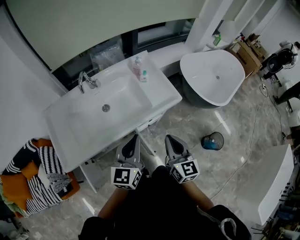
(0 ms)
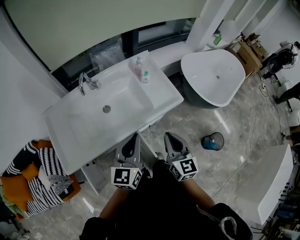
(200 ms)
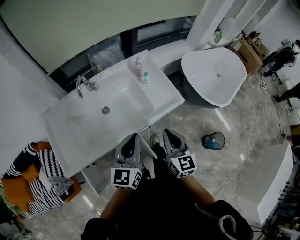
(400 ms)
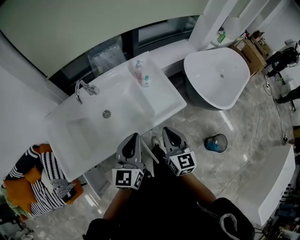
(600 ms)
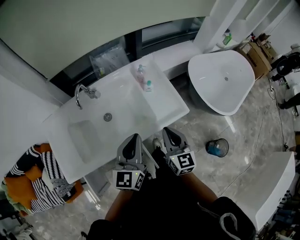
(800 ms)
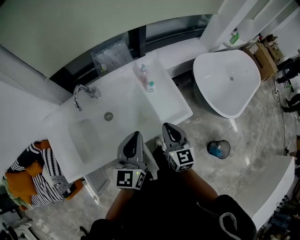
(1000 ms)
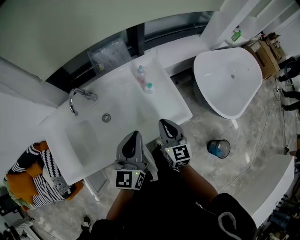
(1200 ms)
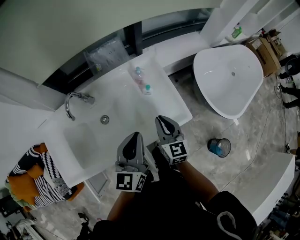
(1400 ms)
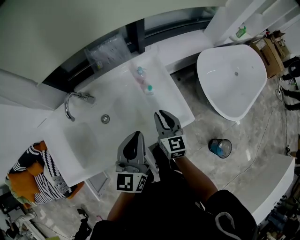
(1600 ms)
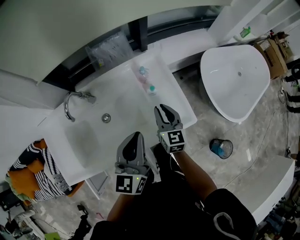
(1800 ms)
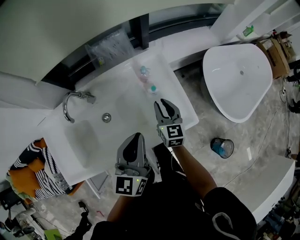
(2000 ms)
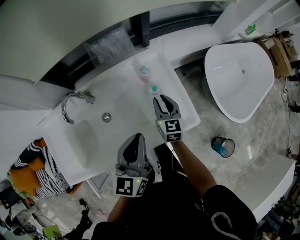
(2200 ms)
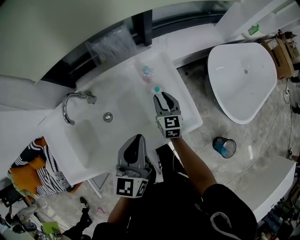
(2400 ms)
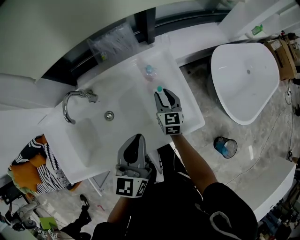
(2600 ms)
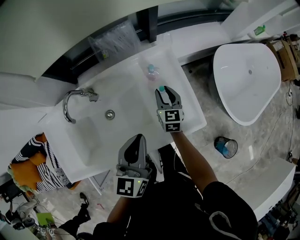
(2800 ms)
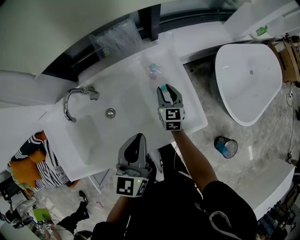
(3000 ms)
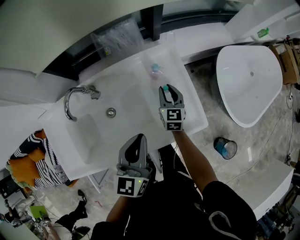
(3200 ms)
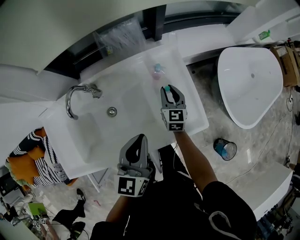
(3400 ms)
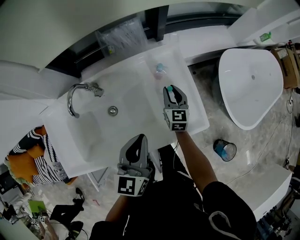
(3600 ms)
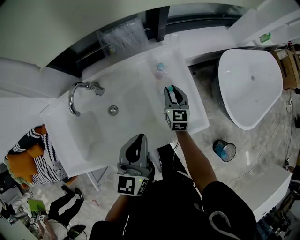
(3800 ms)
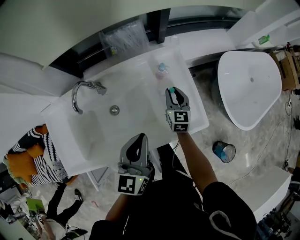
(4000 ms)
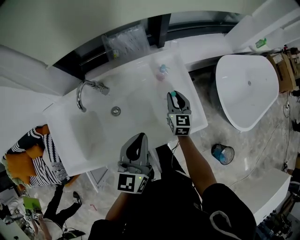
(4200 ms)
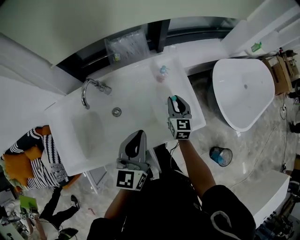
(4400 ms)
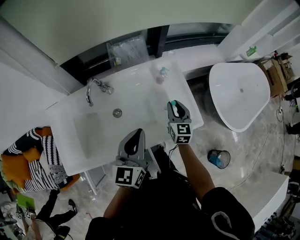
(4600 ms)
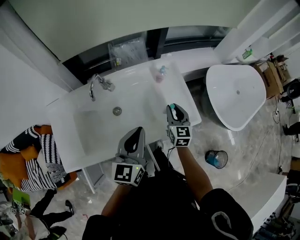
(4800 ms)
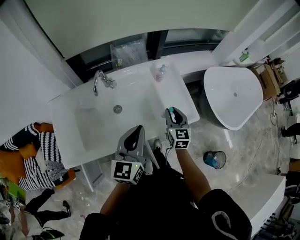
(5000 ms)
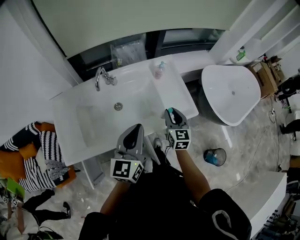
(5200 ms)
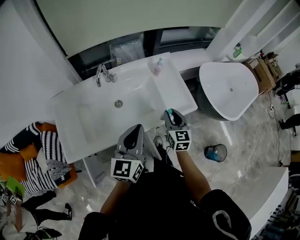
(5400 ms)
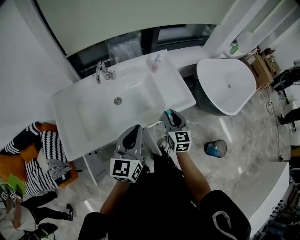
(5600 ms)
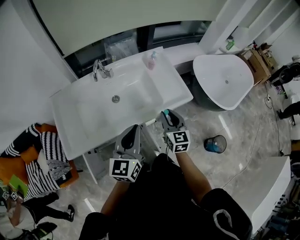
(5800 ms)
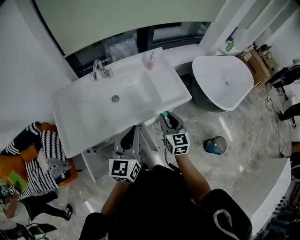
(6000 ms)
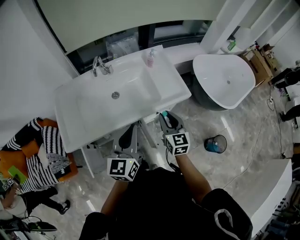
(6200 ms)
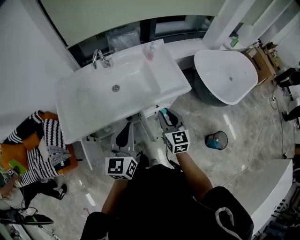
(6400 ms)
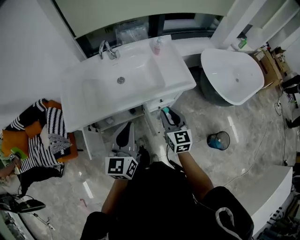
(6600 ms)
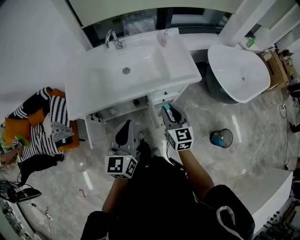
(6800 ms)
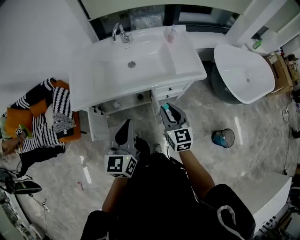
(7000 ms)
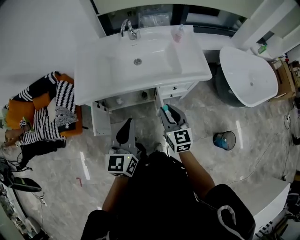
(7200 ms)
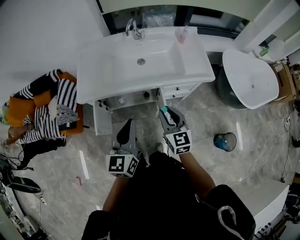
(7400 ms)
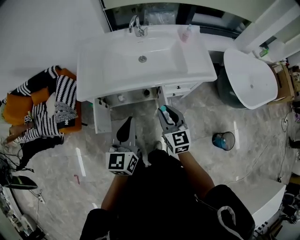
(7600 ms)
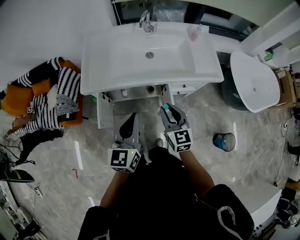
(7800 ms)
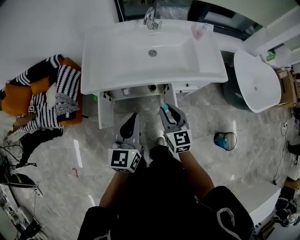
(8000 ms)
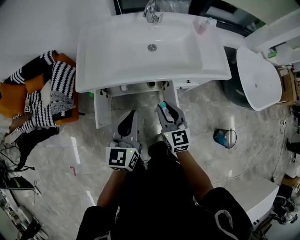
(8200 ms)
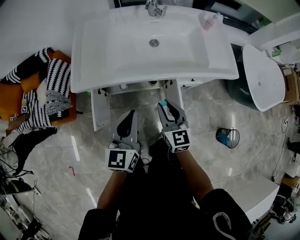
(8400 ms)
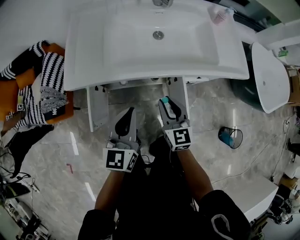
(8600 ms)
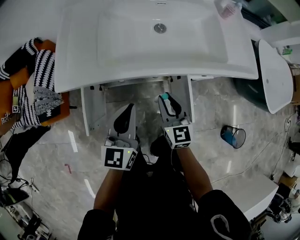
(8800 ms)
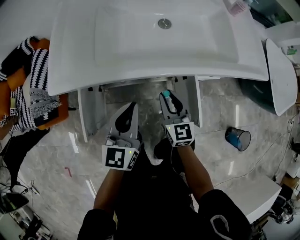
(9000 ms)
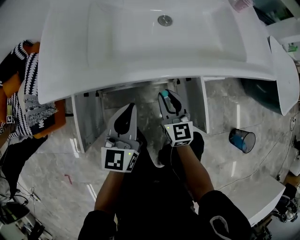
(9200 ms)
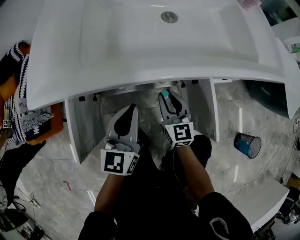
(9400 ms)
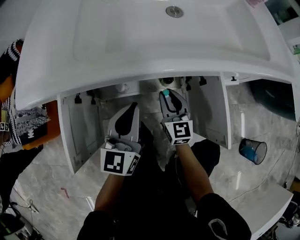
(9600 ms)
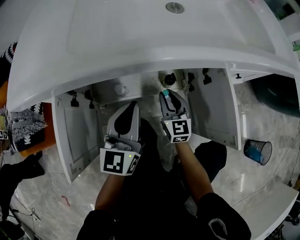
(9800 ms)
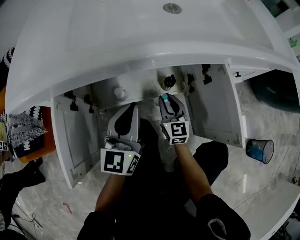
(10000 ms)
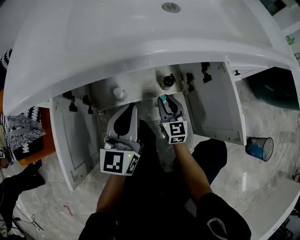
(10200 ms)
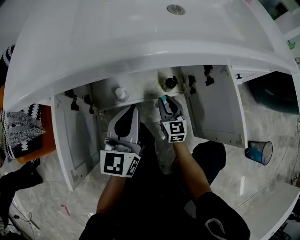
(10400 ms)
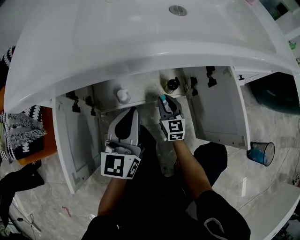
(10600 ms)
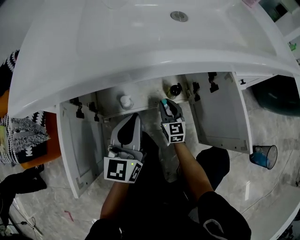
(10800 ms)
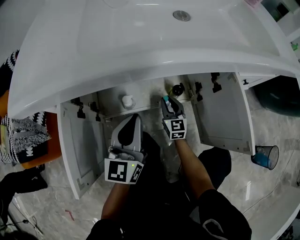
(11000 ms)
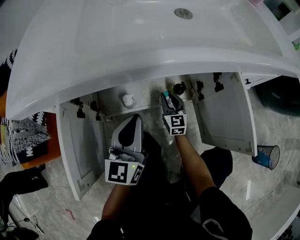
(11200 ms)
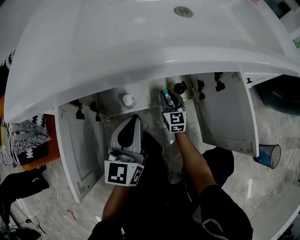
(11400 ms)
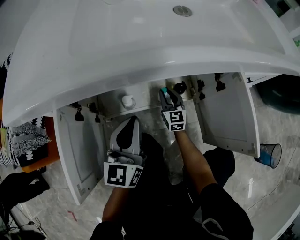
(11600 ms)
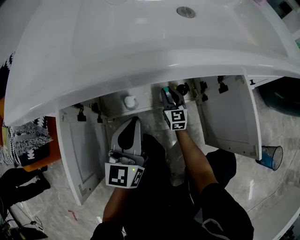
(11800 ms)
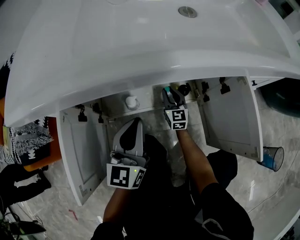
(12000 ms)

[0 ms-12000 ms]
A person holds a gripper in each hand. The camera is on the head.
0 ms to 1600 ms: Both grippers move forward, approximately 25 cm.
1600 ms to 3000 ms: The left gripper moves approximately 5 cm; the right gripper shifts roughly 20 cm forward and downward.
3000 ms to 4400 ms: The left gripper changes place by some 5 cm. Meanwhile the right gripper is displaced backward and upward by about 10 cm.
4400 ms to 6000 ms: Both grippers travel together backward, about 25 cm.
6000 ms to 7600 ms: Both grippers move backward and to the left, some 20 cm. The left gripper rotates some 20 degrees, while the right gripper rotates some 20 degrees.
7600 ms to 9000 ms: Both grippers travel together downward and forward, some 30 cm.
9000 ms to 10400 ms: The grippers both shift downward by roughly 30 cm.
10400 ms to 12000 ms: The right gripper travels forward and downward by approximately 10 cm.

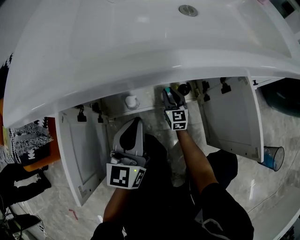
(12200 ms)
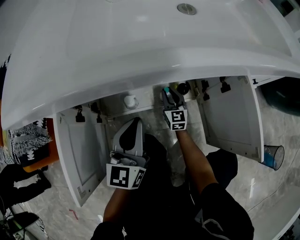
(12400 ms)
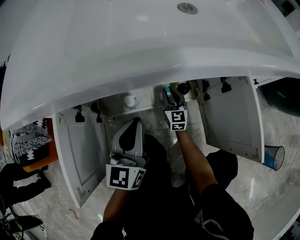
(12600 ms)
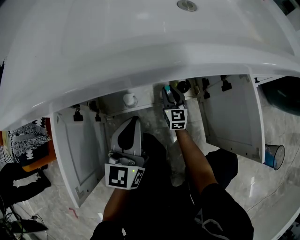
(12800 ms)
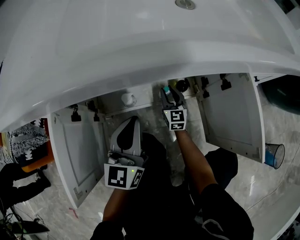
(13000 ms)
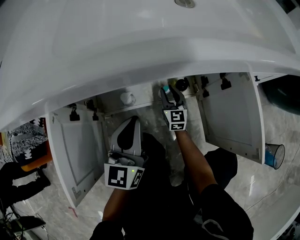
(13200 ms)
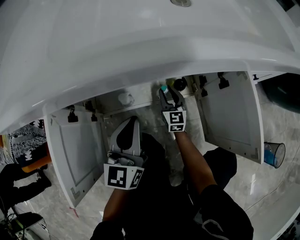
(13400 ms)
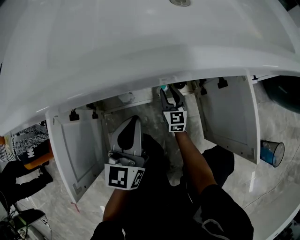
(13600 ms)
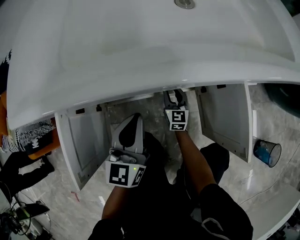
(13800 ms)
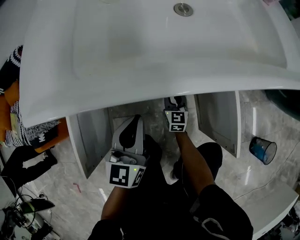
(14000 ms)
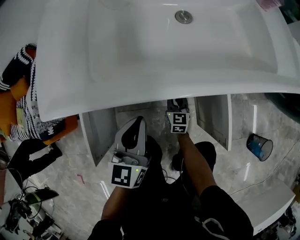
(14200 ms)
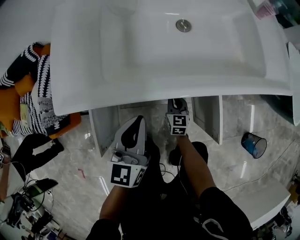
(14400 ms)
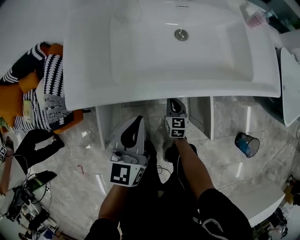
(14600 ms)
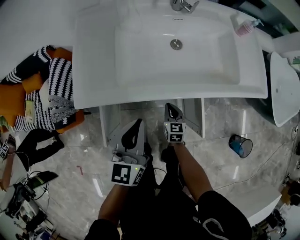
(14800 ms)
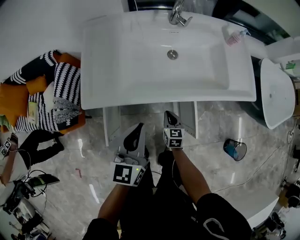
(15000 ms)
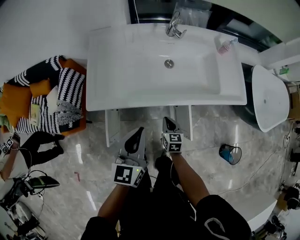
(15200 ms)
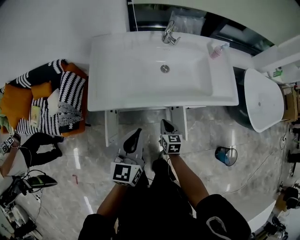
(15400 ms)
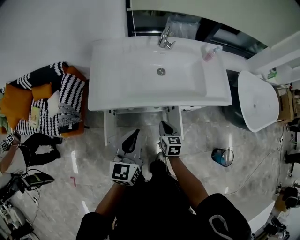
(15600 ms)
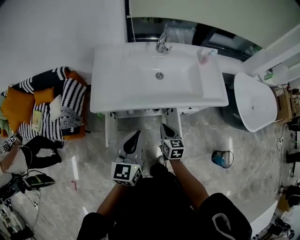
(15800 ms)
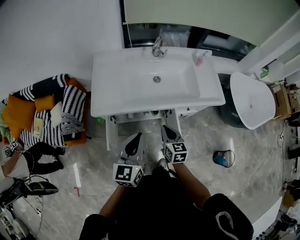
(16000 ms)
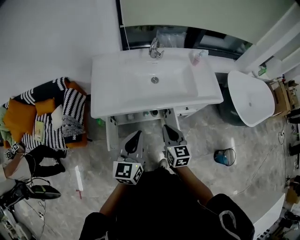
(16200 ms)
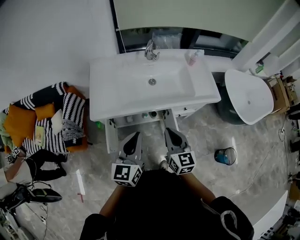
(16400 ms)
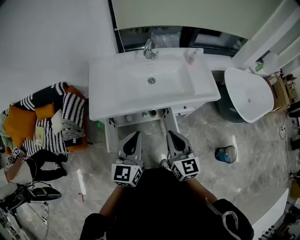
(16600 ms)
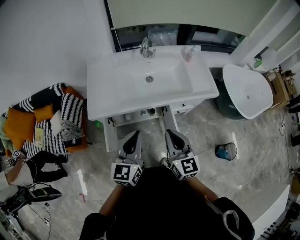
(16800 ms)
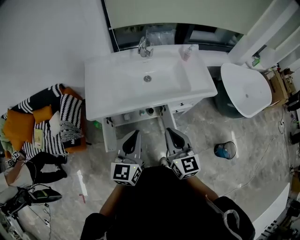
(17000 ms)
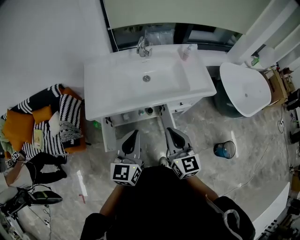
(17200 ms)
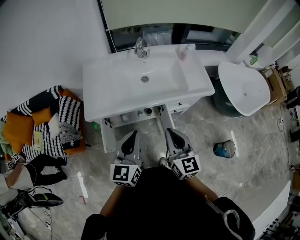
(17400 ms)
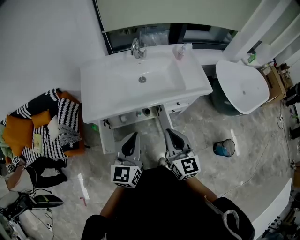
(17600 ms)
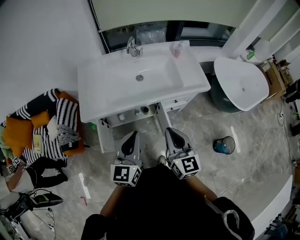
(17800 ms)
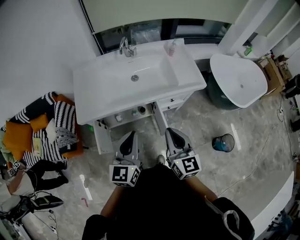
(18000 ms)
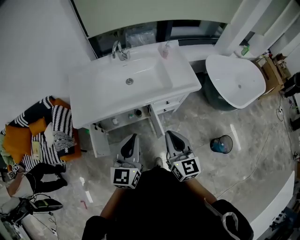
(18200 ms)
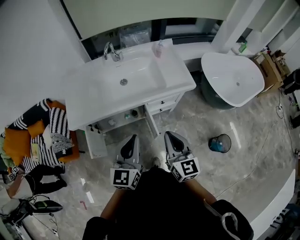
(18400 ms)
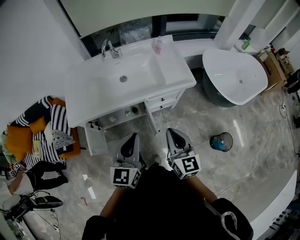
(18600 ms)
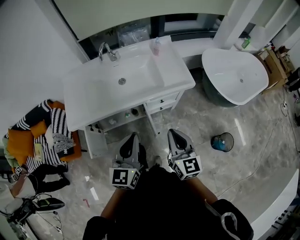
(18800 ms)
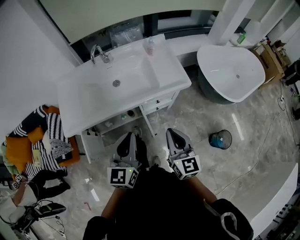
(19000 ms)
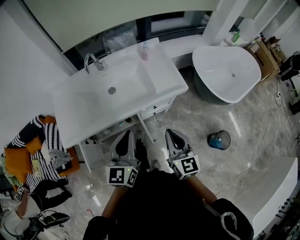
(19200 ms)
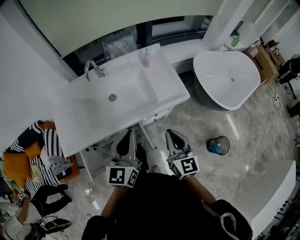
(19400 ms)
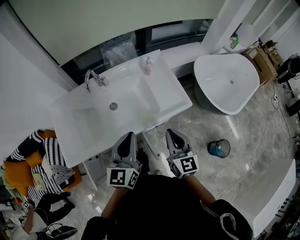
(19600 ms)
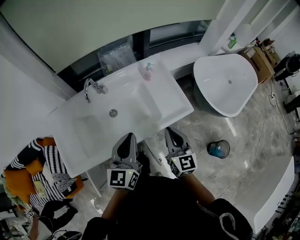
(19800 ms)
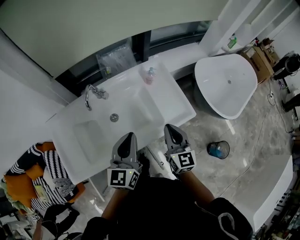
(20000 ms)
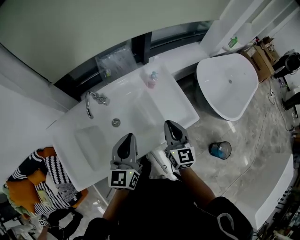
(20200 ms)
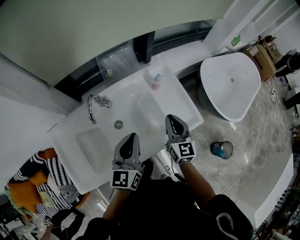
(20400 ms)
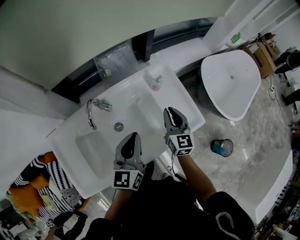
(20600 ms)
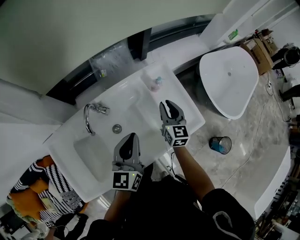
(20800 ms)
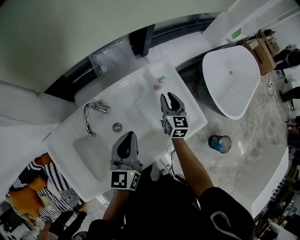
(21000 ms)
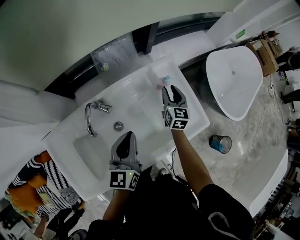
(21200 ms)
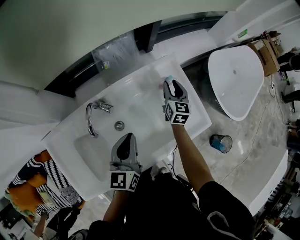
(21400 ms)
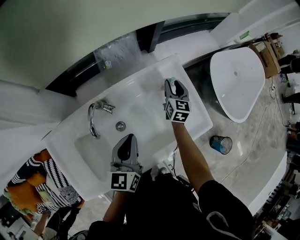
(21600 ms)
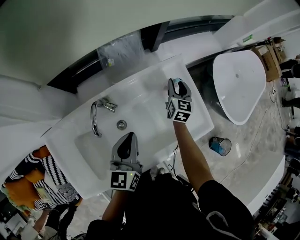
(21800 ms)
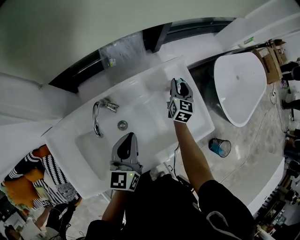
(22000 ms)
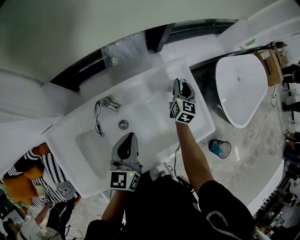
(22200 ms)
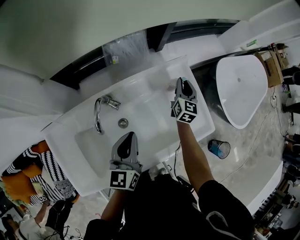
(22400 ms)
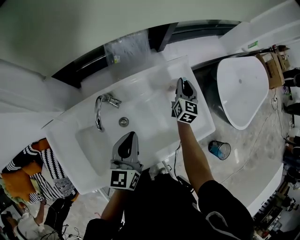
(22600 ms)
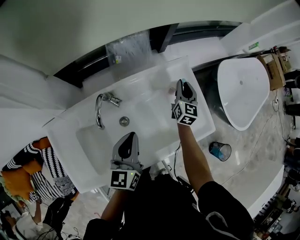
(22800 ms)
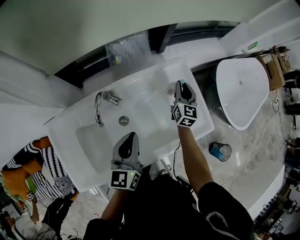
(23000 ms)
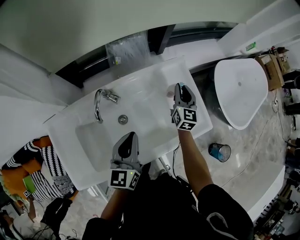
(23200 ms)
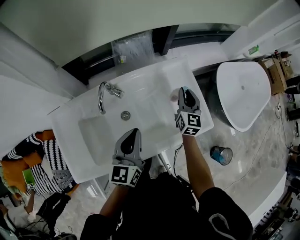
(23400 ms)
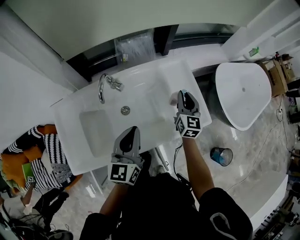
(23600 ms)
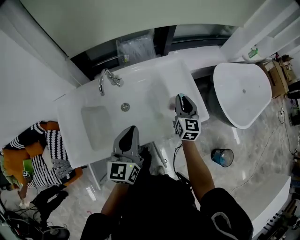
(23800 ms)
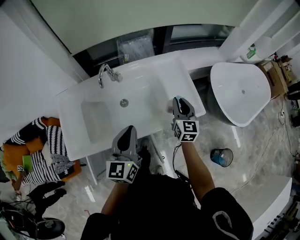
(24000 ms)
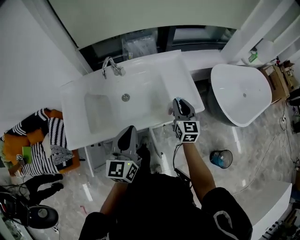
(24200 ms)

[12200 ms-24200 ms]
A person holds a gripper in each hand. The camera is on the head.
12200 ms to 13800 ms: The right gripper shifts by approximately 5 cm.
13800 ms to 15200 ms: Both grippers travel together upward, about 40 cm. The right gripper changes its angle by some 20 degrees, and closes its fingers.
15200 ms to 16600 ms: The right gripper moves upward and backward, about 40 cm, and turns by some 30 degrees. The left gripper goes some 15 cm upward and backward.
16600 ms to 18200 ms: The grippers both shift to the right by about 10 cm.
18200 ms to 19800 ms: Both grippers move forward, about 30 cm.
19800 ms to 21200 ms: The right gripper goes some 35 cm forward, and opens up. Meanwhile the left gripper moves forward and to the left, roughly 20 cm.
21200 ms to 22600 ms: The grippers make only small movements.
22600 ms to 24200 ms: The grippers both shift backward by roughly 30 cm. The right gripper swivels about 20 degrees.
